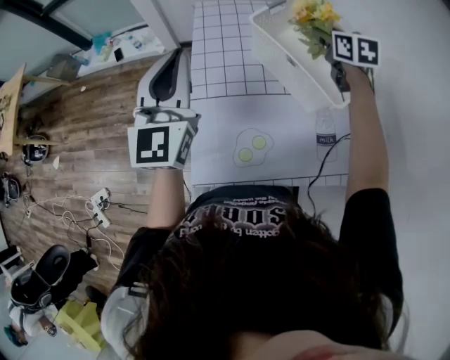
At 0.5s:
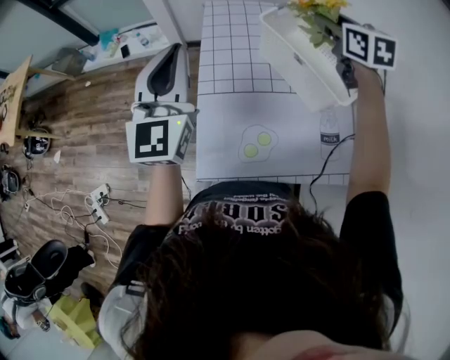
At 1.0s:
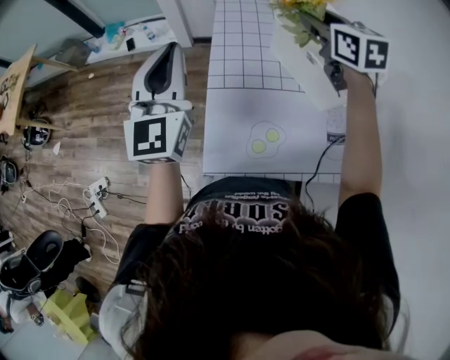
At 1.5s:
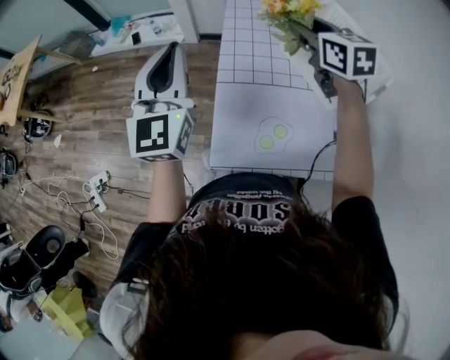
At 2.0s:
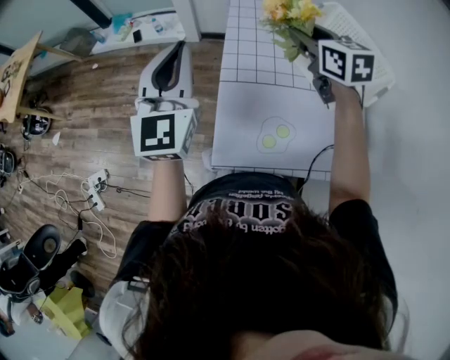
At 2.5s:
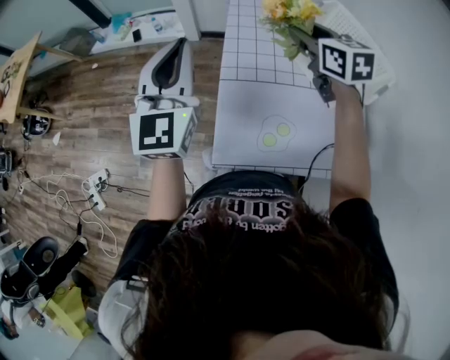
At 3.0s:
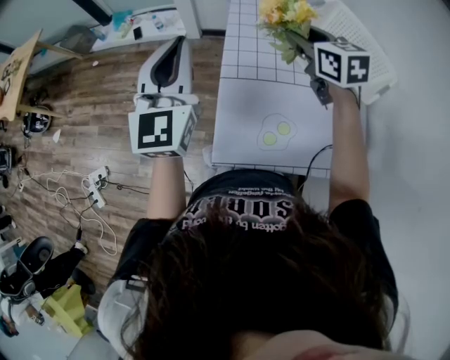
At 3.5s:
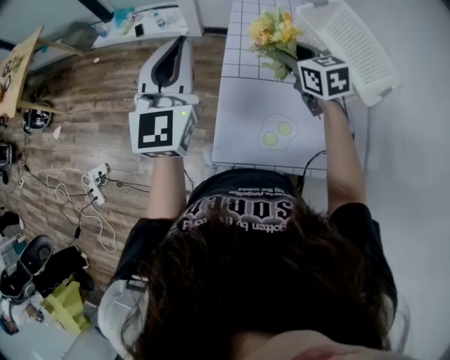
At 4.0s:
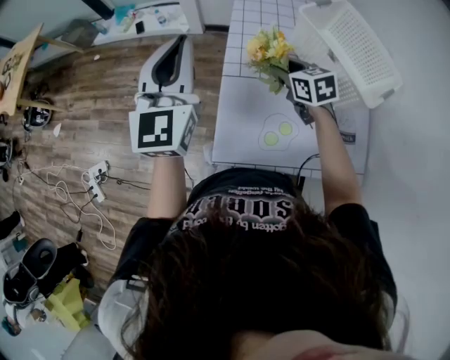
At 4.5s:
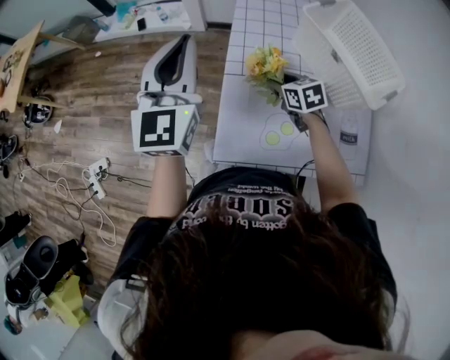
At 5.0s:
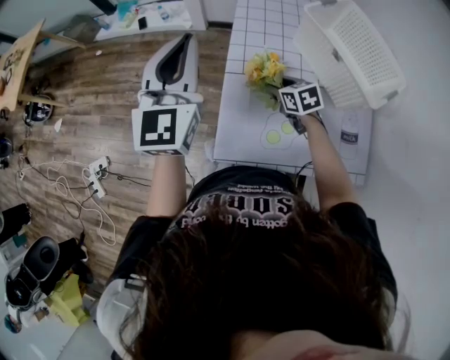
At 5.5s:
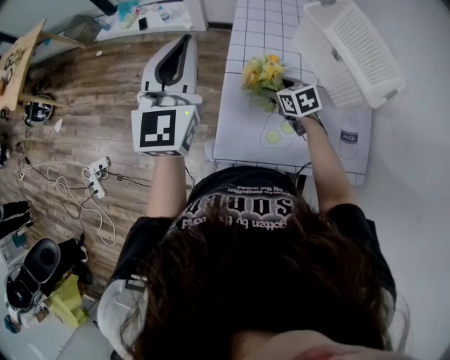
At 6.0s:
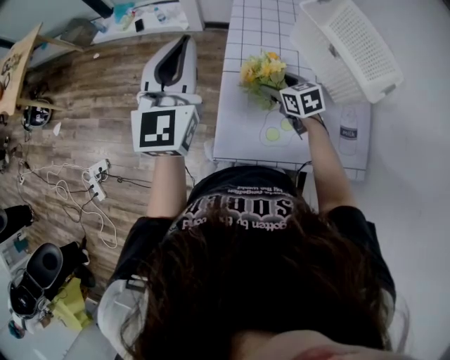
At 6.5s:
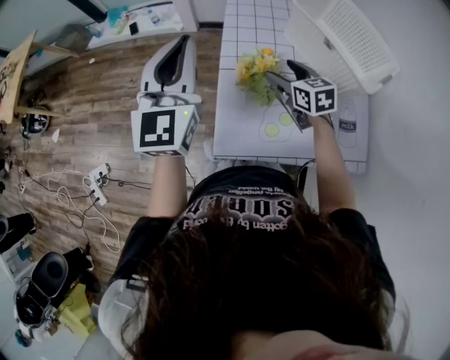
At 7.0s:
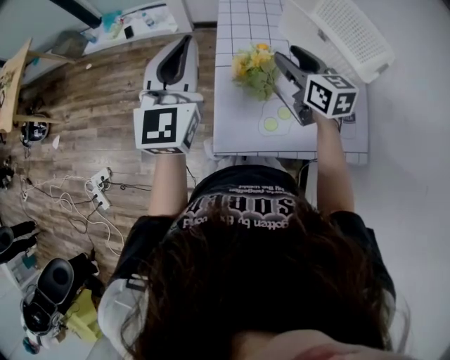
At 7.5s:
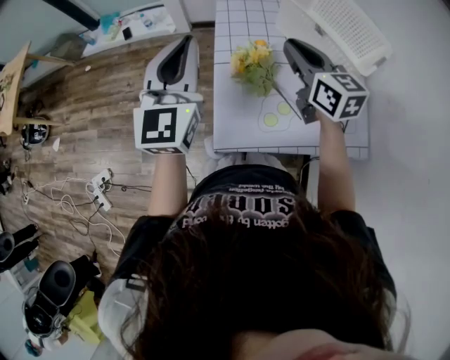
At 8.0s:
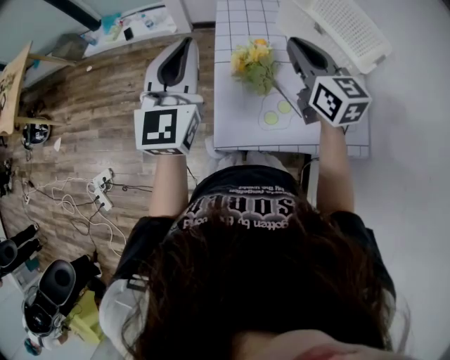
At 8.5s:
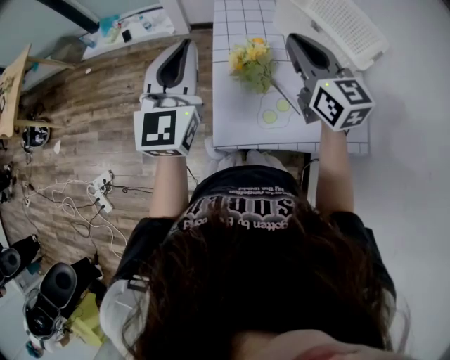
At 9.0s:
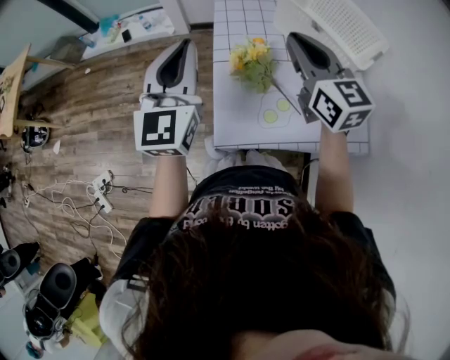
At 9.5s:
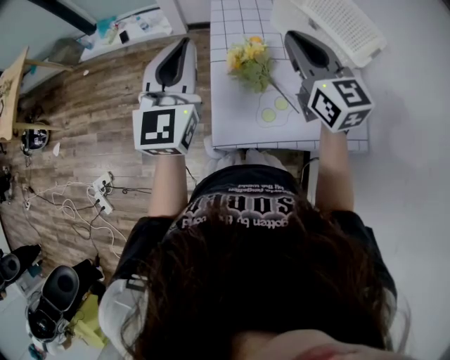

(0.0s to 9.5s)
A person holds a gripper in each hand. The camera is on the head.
0.0s - 2.0s: The right gripper shifts roughly 20 cm to the left. Meanwhile the left gripper heads to the left, covering approximately 10 cm.
2.0s - 4.0s: The right gripper goes approximately 15 cm downward.
4.0s - 5.5s: The right gripper is displaced downward by roughly 10 cm.
5.5s - 7.5s: The right gripper heads upward, covering about 25 cm, tilts its fingers approximately 30 degrees upward, and closes.
7.5s - 9.5s: The right gripper shifts about 5 cm upward.

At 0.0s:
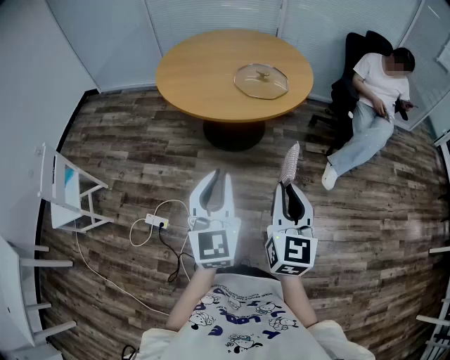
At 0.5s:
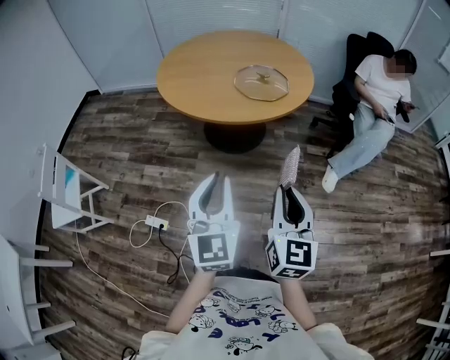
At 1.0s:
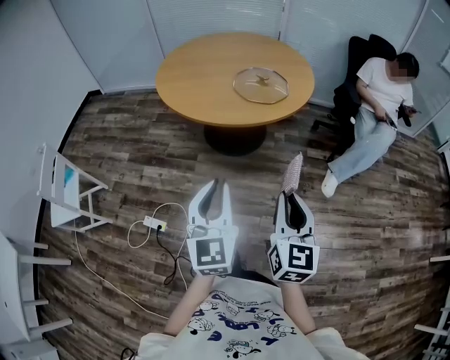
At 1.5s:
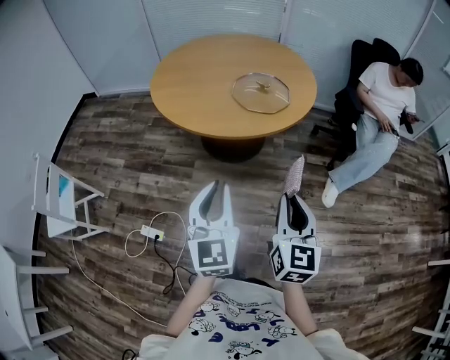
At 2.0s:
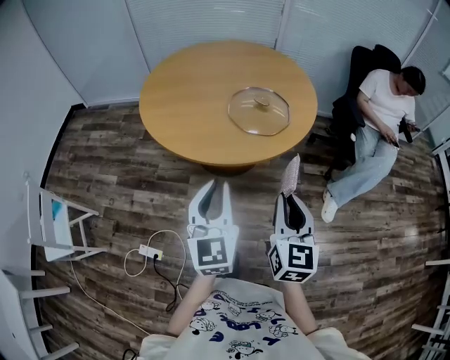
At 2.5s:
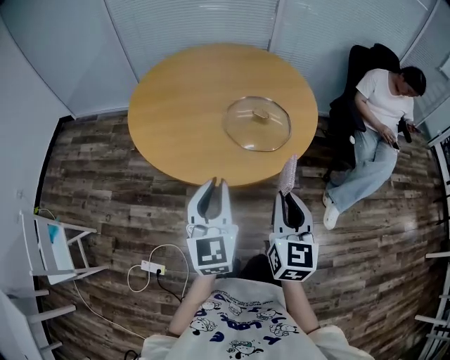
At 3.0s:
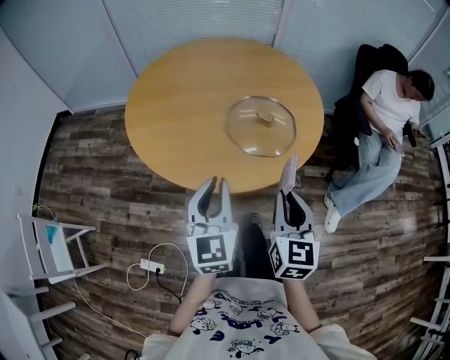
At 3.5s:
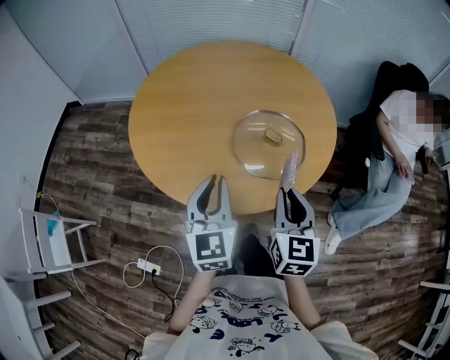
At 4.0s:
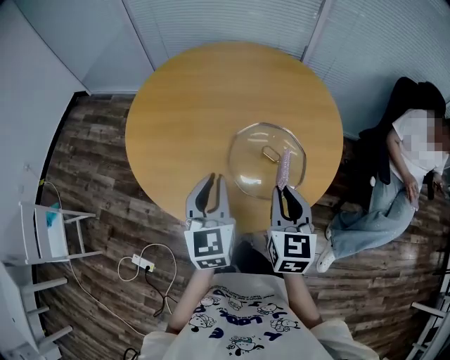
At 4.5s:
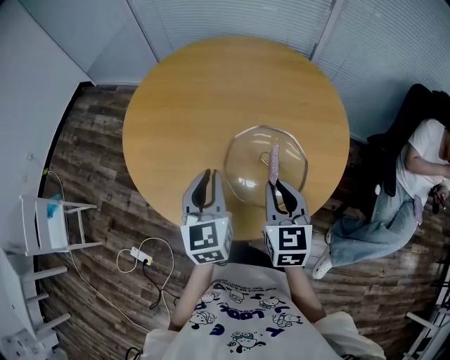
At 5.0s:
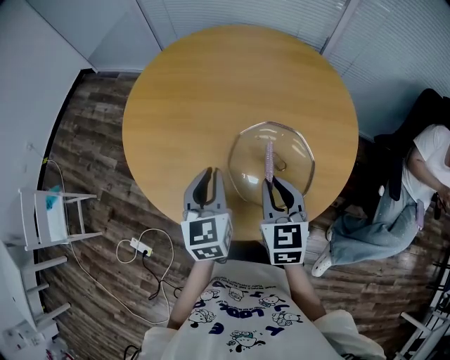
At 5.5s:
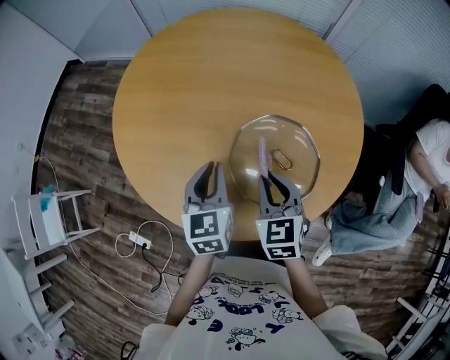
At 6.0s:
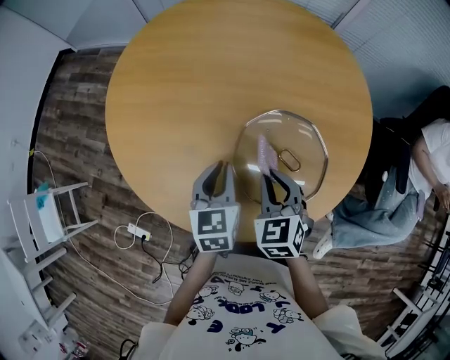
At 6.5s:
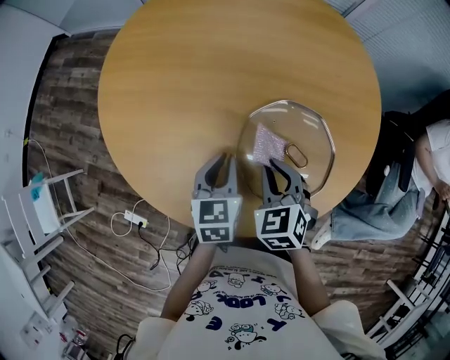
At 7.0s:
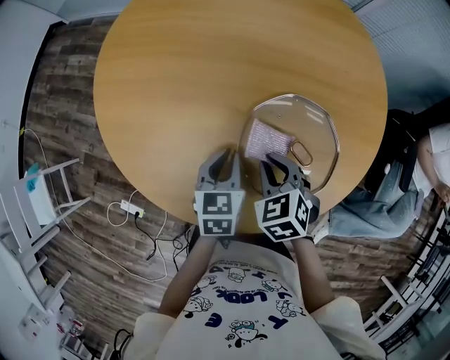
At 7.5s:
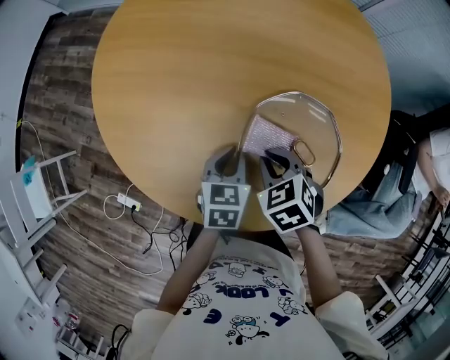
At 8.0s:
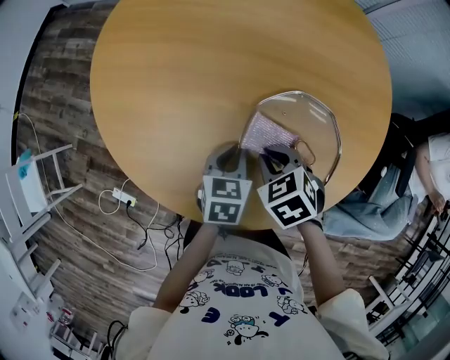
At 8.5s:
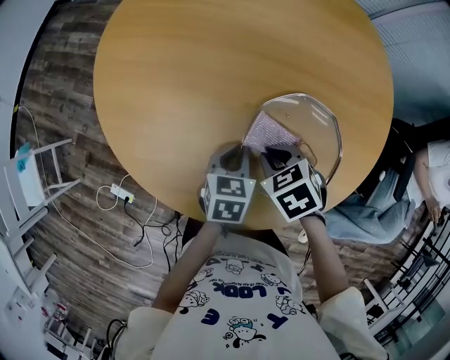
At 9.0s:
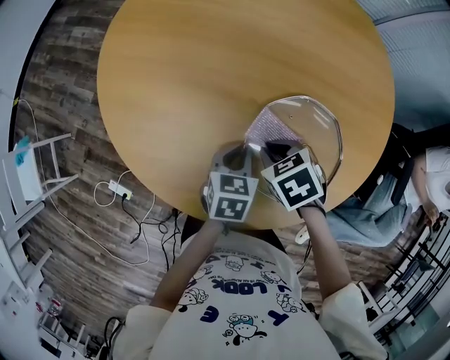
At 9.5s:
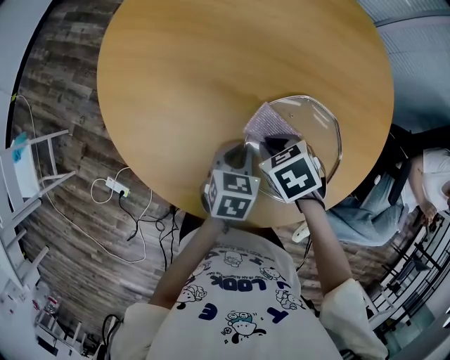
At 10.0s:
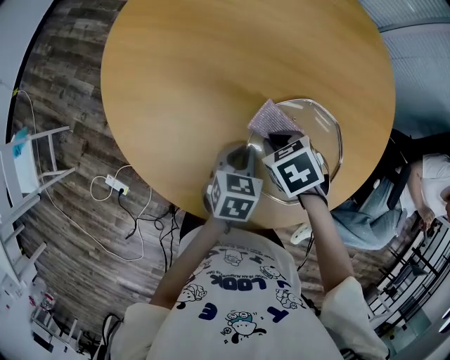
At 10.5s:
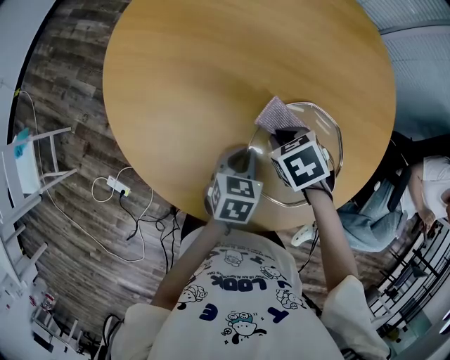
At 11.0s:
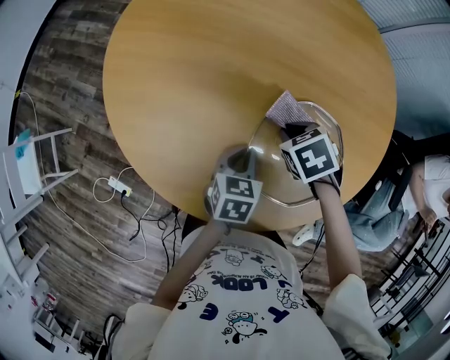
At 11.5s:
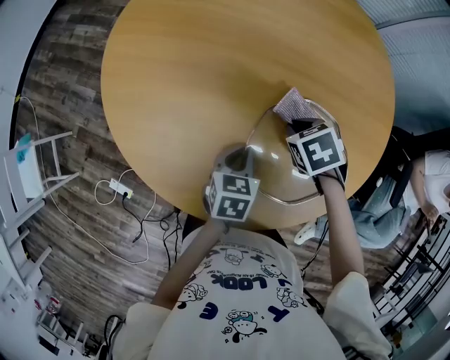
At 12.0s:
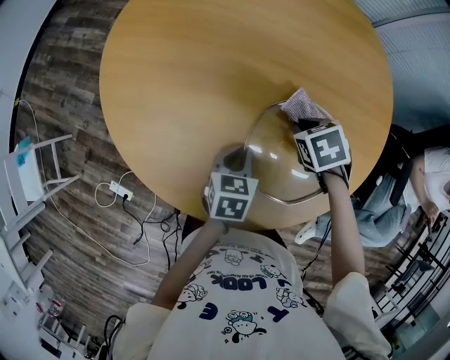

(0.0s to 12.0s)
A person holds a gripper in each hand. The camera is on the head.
0.0s - 2.0s: The grippers both shift forward by about 20 cm.
2.0s - 4.0s: Both grippers move forward, about 30 cm.
4.0s - 6.0s: Both grippers move downward and forward, roughly 15 cm. The left gripper rotates roughly 20 degrees; the right gripper swivels about 30 degrees.
6.0s - 8.0s: The grippers both shift downward by about 10 cm. The right gripper rotates roughly 30 degrees.
8.0s - 10.0s: The grippers make only small movements.
10.0s - 12.0s: The right gripper ends up roughly 10 cm from where it was.

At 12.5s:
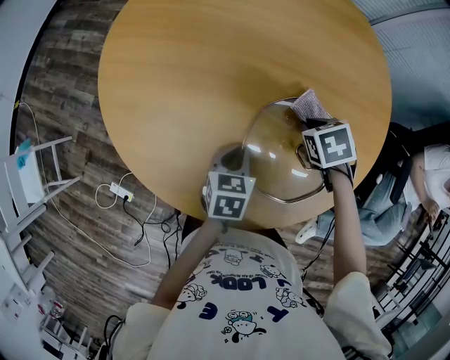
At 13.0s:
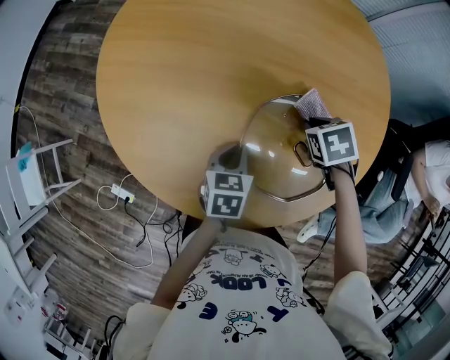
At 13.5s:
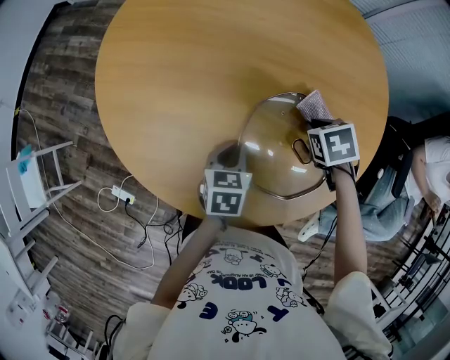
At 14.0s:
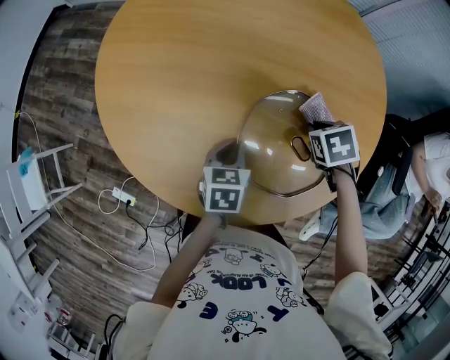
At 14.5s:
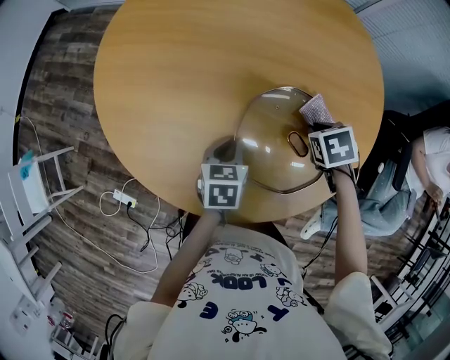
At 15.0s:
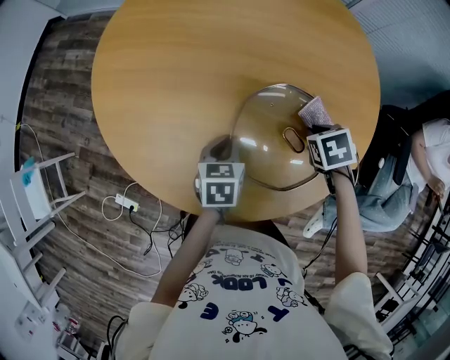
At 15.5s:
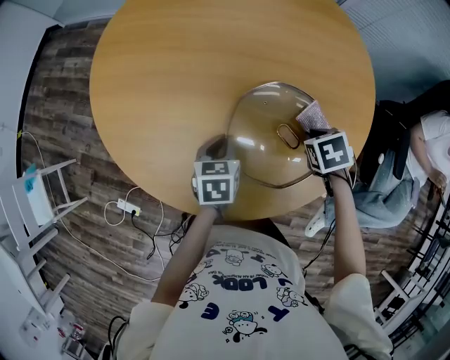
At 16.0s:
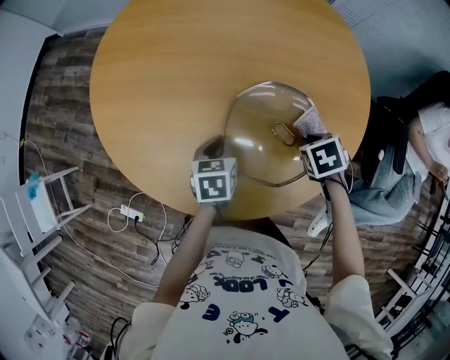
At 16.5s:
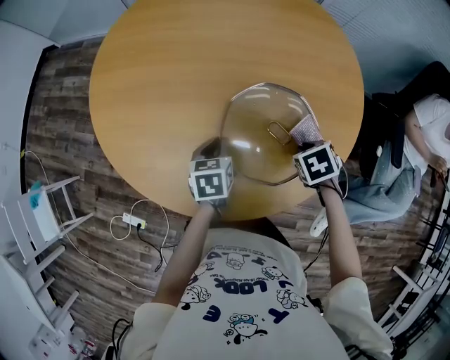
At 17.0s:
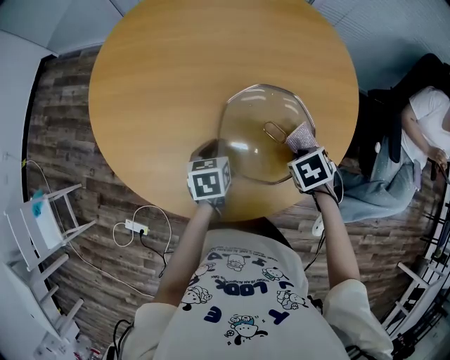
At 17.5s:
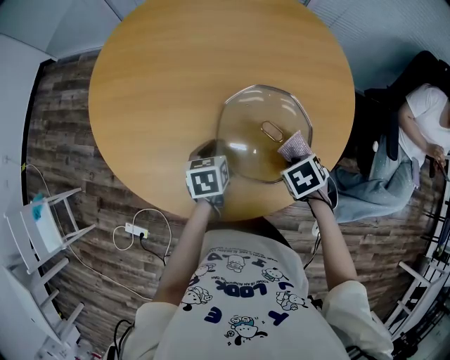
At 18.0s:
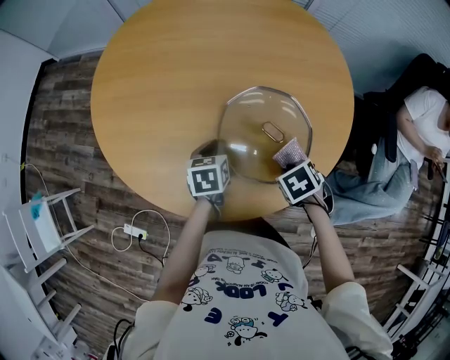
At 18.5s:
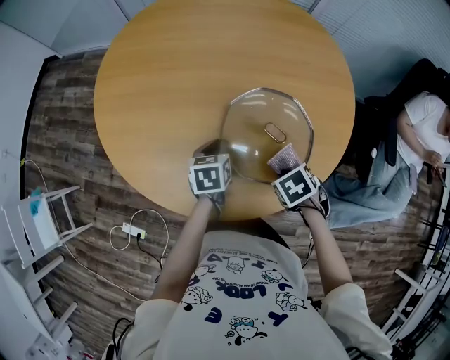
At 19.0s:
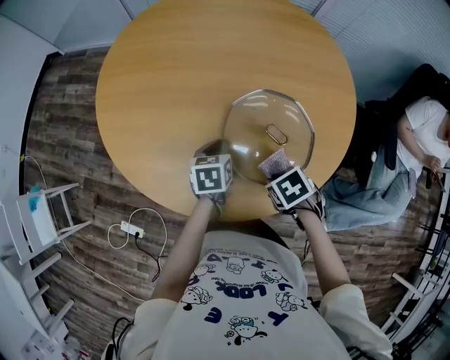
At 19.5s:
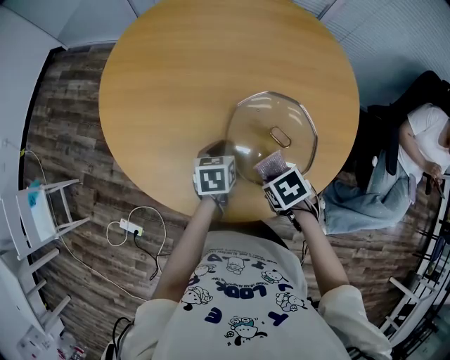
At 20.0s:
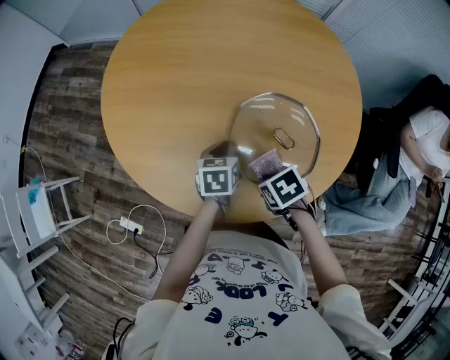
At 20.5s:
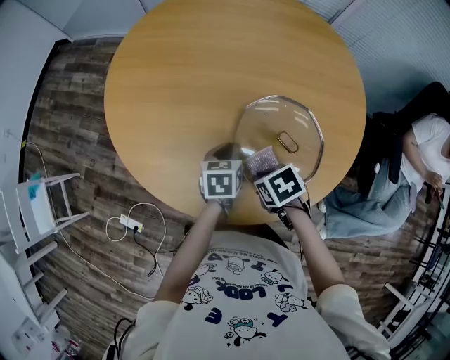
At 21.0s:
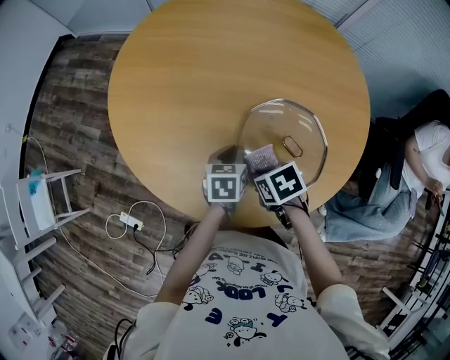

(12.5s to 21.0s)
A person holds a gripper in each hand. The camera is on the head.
12.5s - 14.5s: The right gripper moves some 5 cm.
14.5s - 16.5s: The right gripper moves approximately 10 cm.
16.5s - 19.0s: The right gripper shifts by some 15 cm.
19.0s - 21.0s: The right gripper moves roughly 10 cm.
